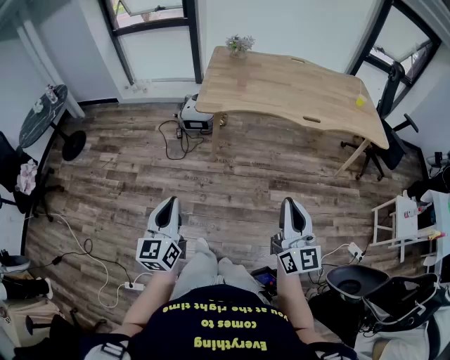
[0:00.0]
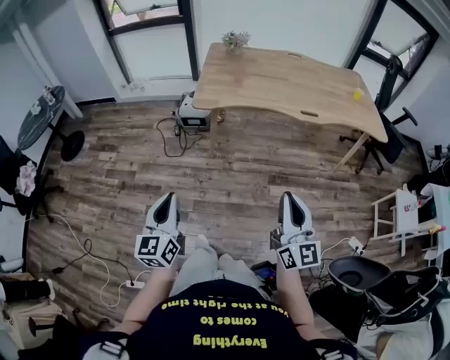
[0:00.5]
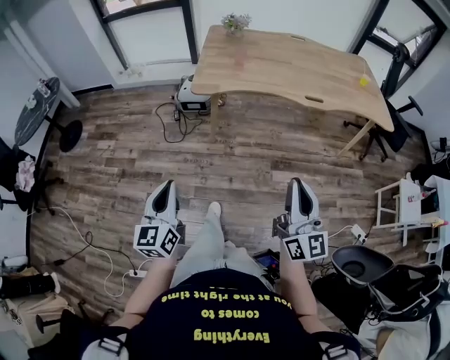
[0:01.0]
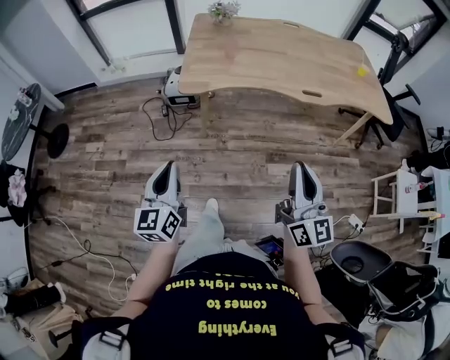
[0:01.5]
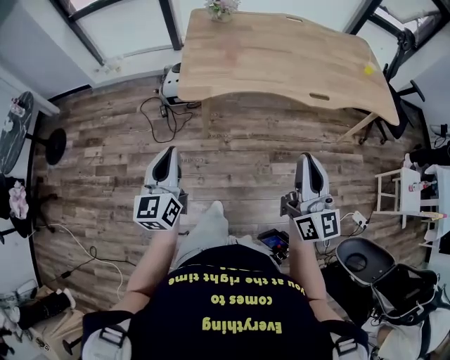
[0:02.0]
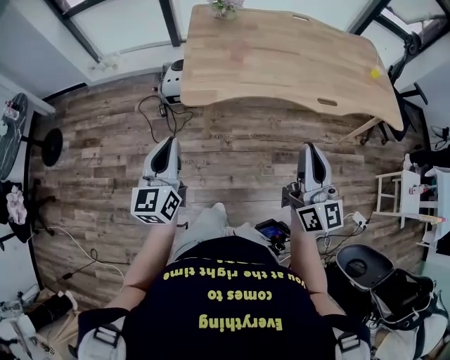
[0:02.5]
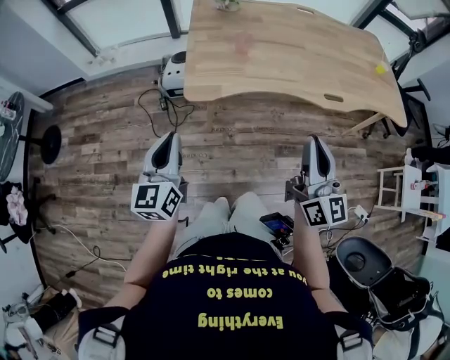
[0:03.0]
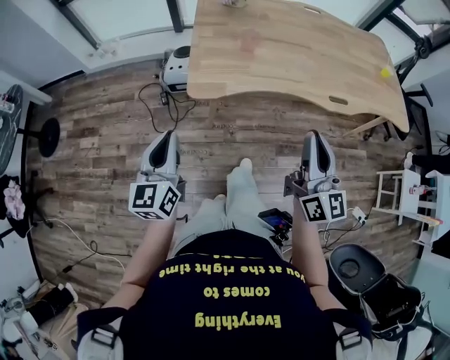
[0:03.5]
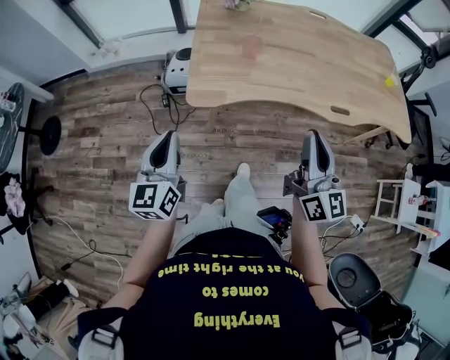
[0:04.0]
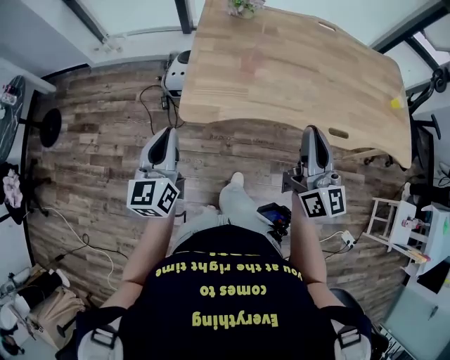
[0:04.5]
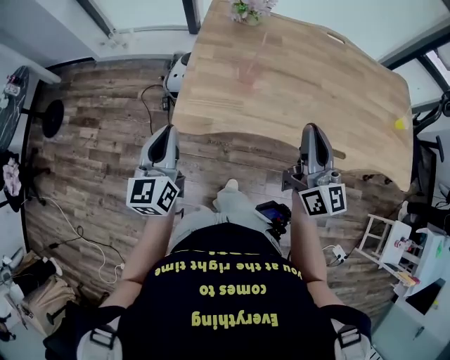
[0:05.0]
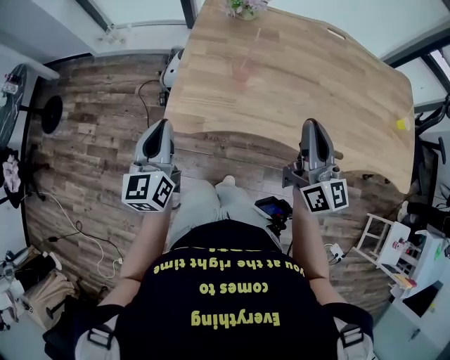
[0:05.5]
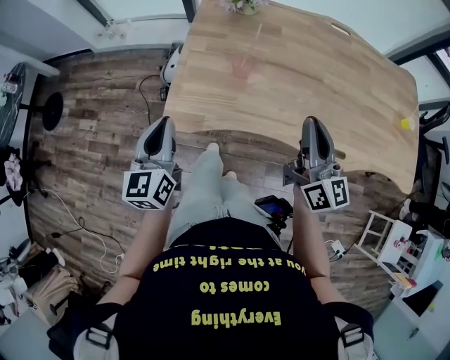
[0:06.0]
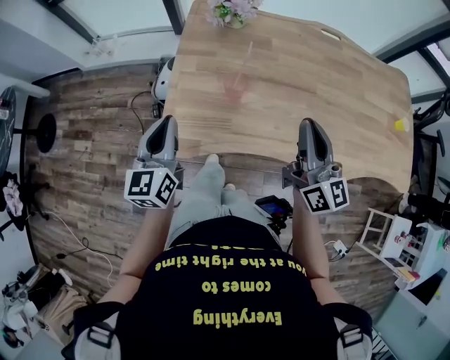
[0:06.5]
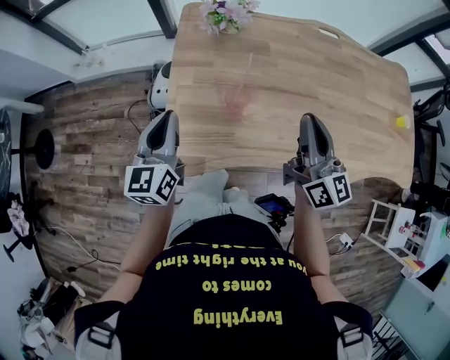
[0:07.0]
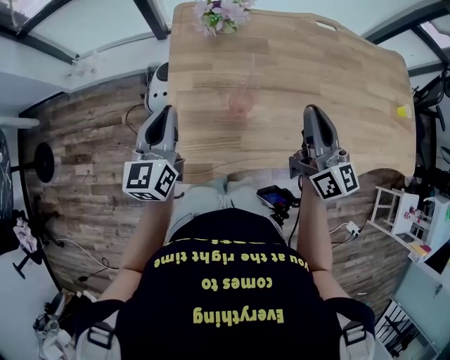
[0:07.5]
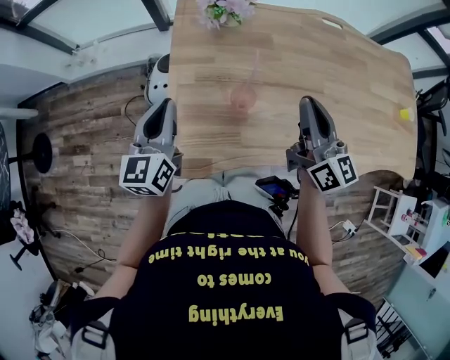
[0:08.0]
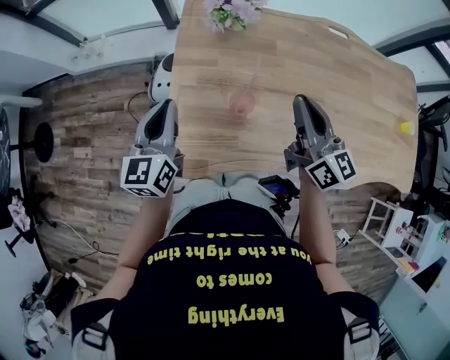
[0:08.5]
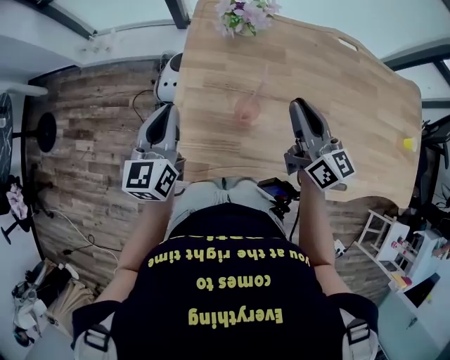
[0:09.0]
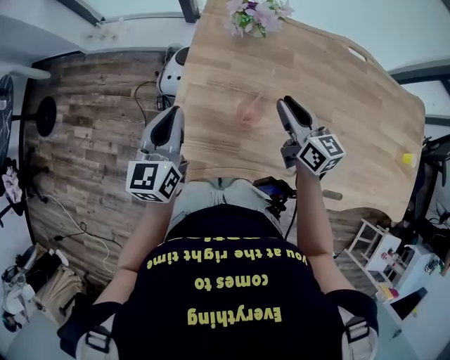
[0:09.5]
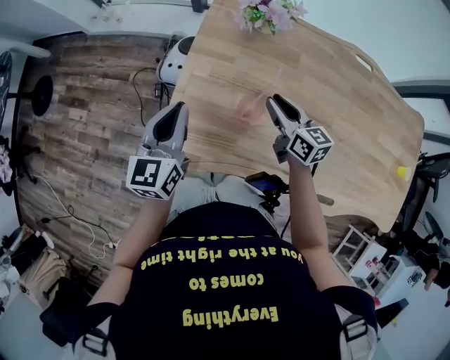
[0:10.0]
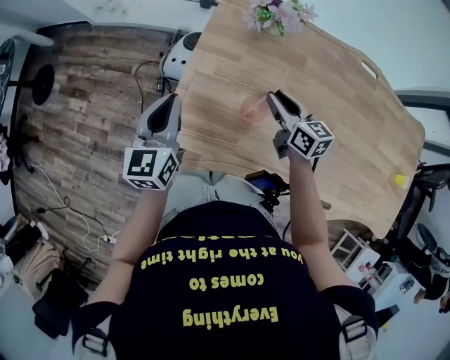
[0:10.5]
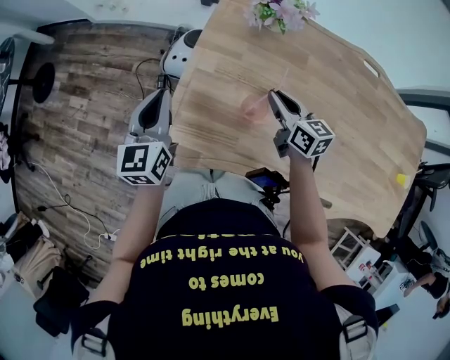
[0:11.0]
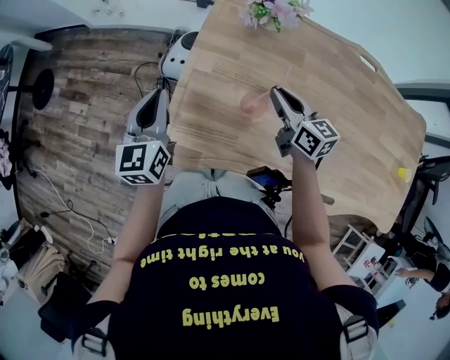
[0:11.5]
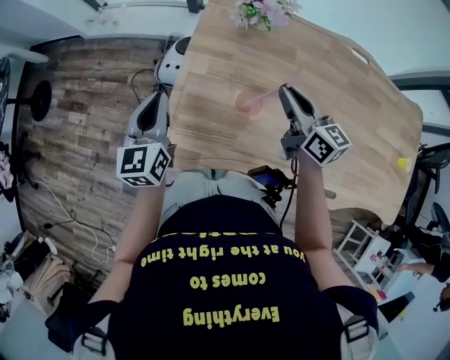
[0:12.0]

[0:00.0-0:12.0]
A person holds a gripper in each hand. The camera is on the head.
0:00.0 to 0:02.0: The two grippers go some 25 cm forward.
0:02.0 to 0:04.0: The grippers both shift forward by roughly 15 cm.
0:04.0 to 0:06.0: The grippers both shift forward and to the right by roughly 20 cm.
0:06.0 to 0:08.0: The two grippers go roughly 20 cm forward.
0:08.0 to 0:10.0: The right gripper shifts about 20 cm downward and forward, turns by some 40 degrees, and opens.
0:10.0 to 0:12.0: The left gripper ends up roughly 5 cm from where it was. Meanwhile the right gripper goes roughly 10 cm upward.

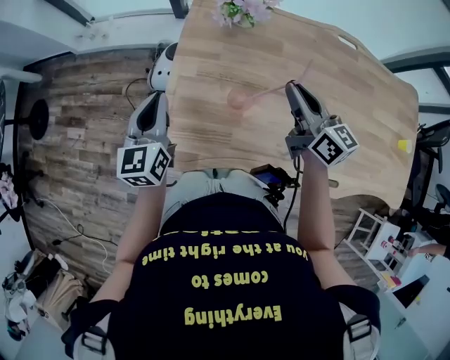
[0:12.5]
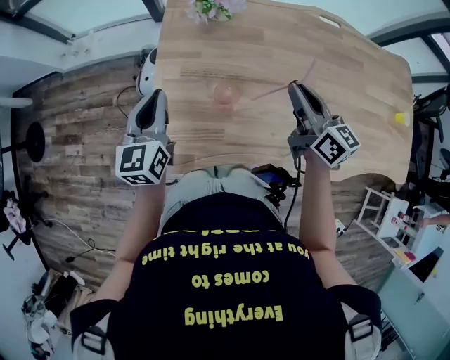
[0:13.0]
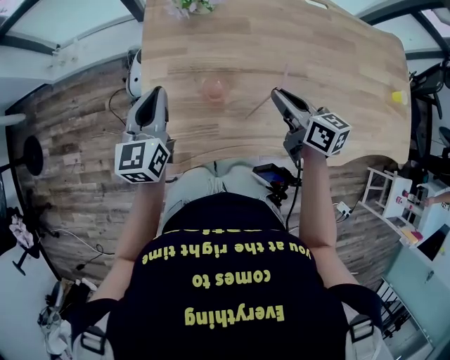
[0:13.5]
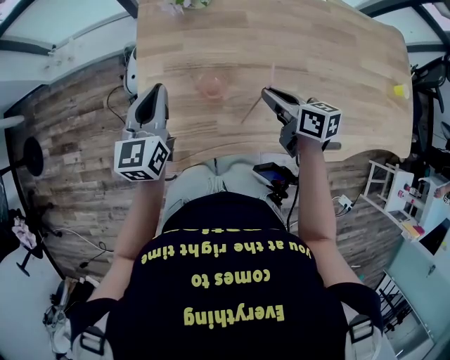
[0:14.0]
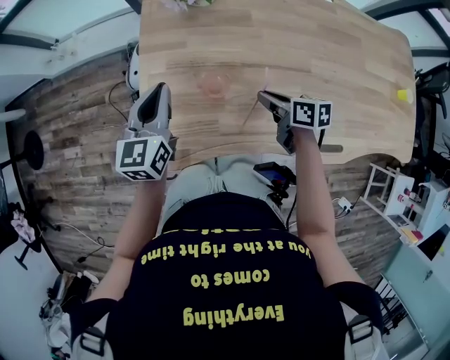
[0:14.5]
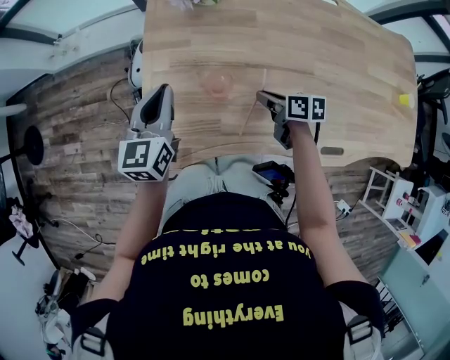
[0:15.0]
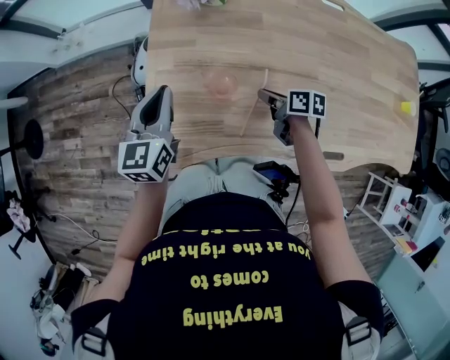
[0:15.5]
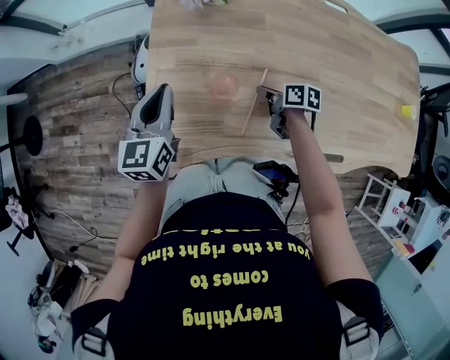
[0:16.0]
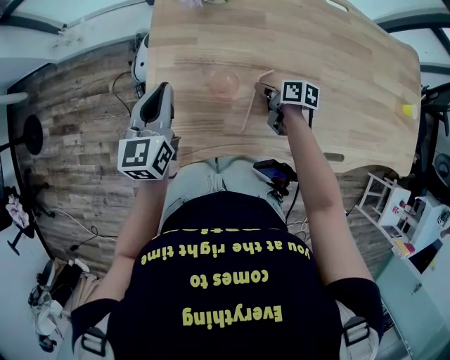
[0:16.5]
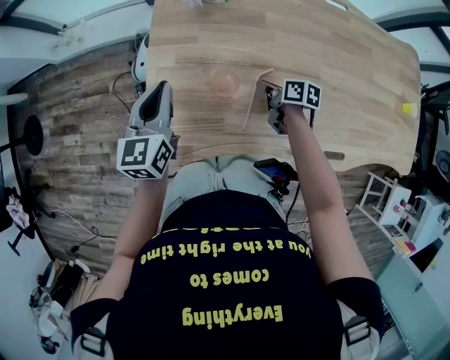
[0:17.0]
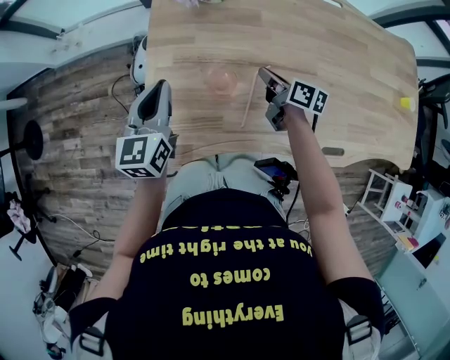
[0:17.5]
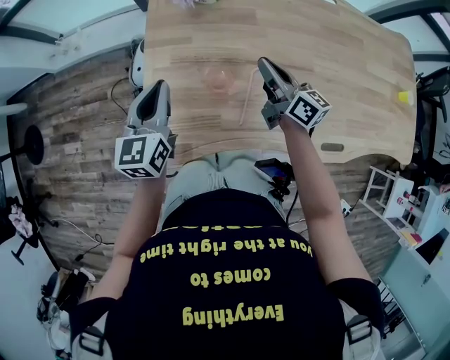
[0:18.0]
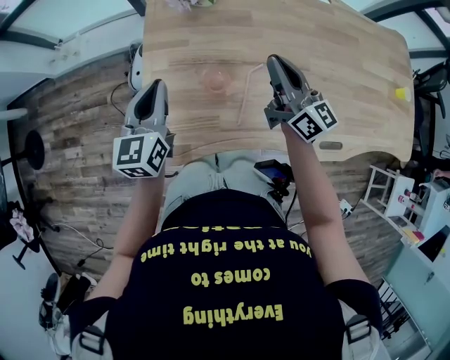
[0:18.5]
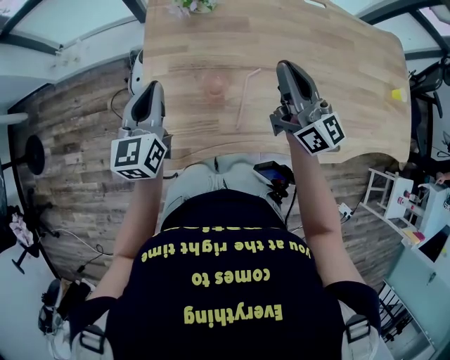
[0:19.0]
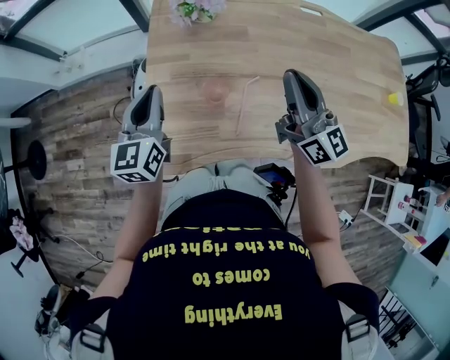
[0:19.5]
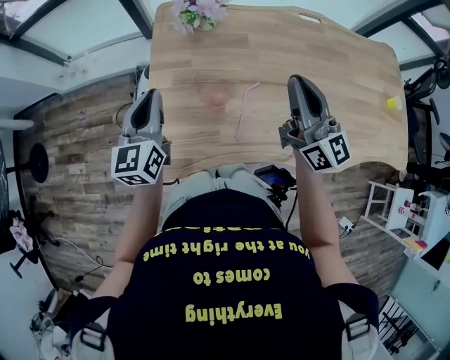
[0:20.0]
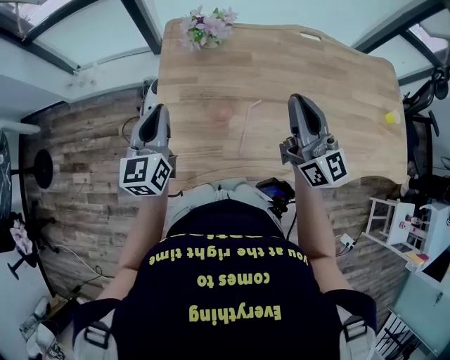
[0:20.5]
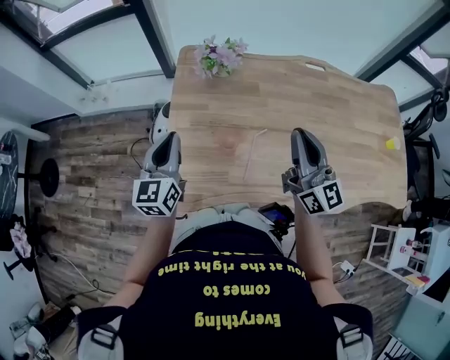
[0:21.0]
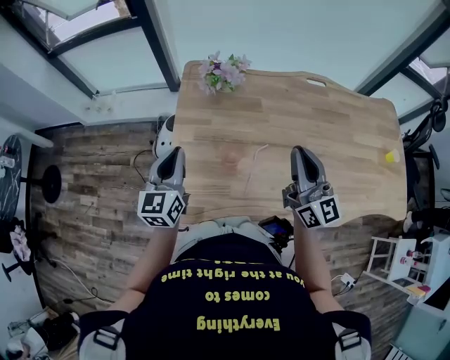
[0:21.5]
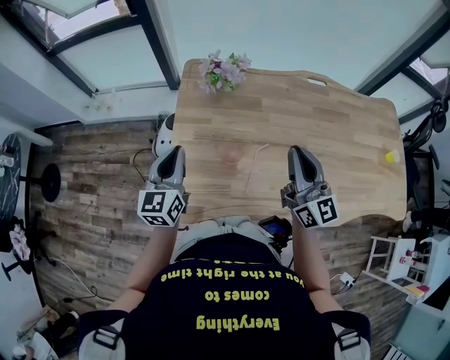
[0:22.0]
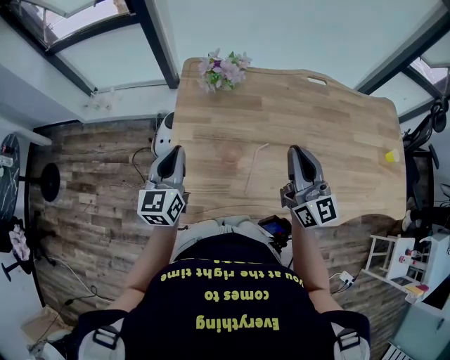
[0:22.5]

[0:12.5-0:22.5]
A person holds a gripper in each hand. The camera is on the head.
0:12.5 to 0:14.5: The left gripper travels to the right by about 10 cm; the right gripper is displaced downward by some 20 cm, and rotates roughly 40 degrees.
0:14.5 to 0:16.5: The right gripper is displaced downward by roughly 10 cm.
0:16.5 to 0:18.5: The right gripper heads upward, covering about 25 cm, and angles its fingers upward, by about 50 degrees.
0:18.5 to 0:20.5: The left gripper heads upward, covering roughly 5 cm, while the right gripper moves upward and backward, about 15 cm.
0:20.5 to 0:22.5: The two grippers keep their place.

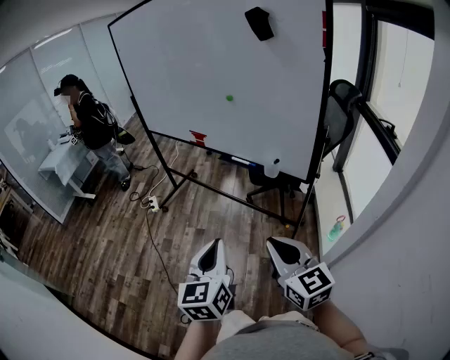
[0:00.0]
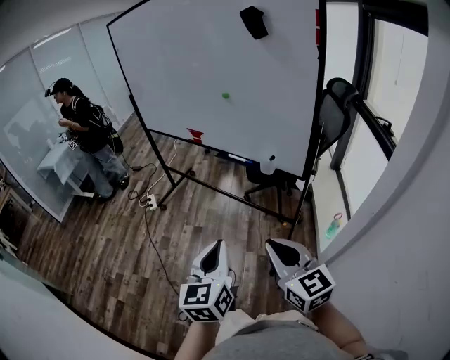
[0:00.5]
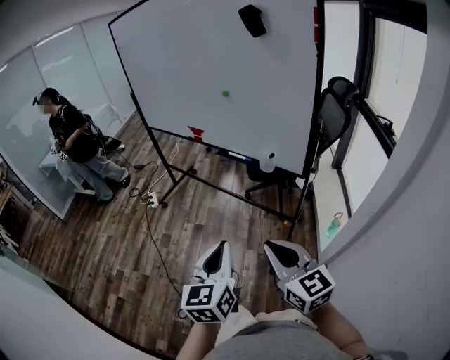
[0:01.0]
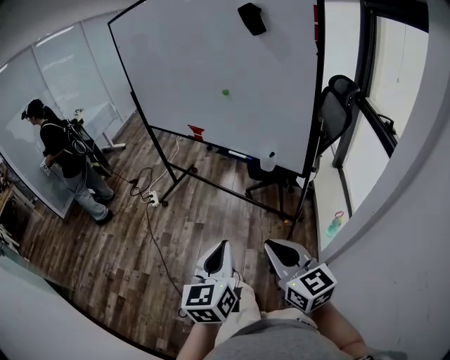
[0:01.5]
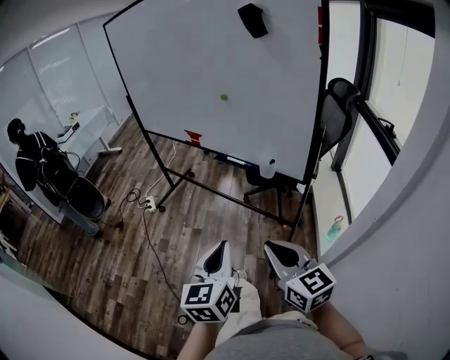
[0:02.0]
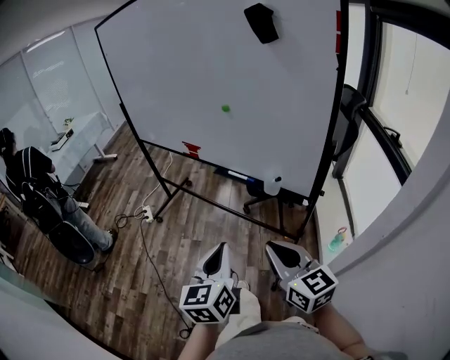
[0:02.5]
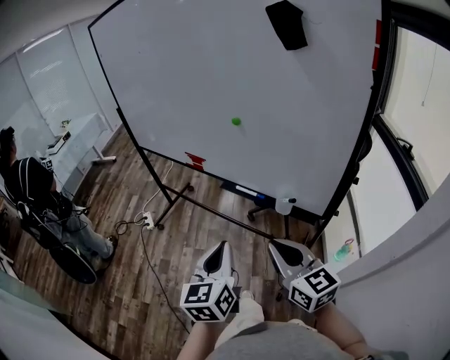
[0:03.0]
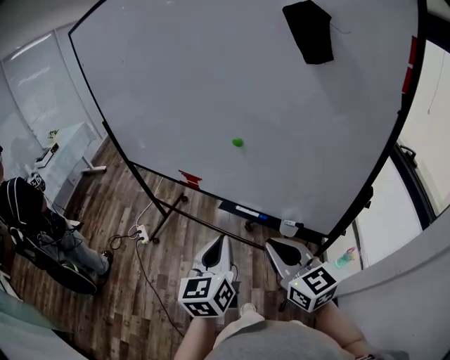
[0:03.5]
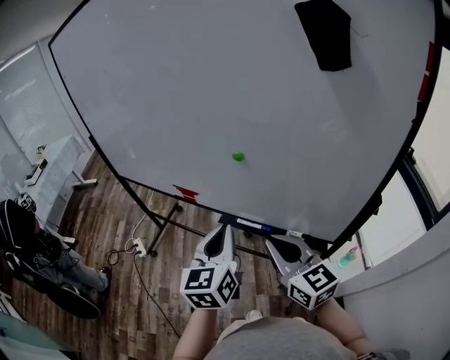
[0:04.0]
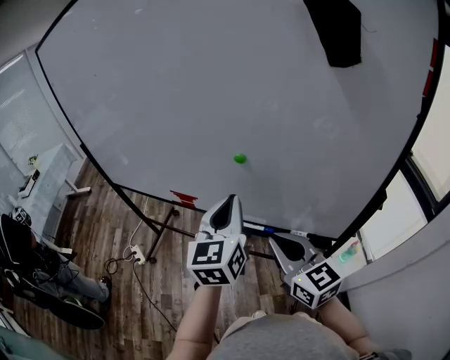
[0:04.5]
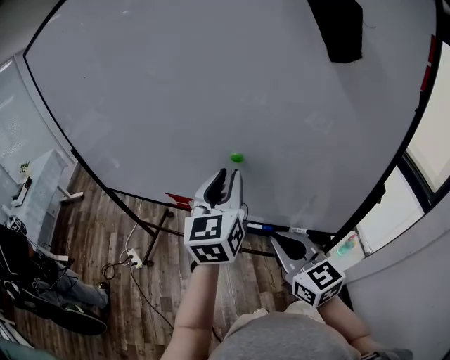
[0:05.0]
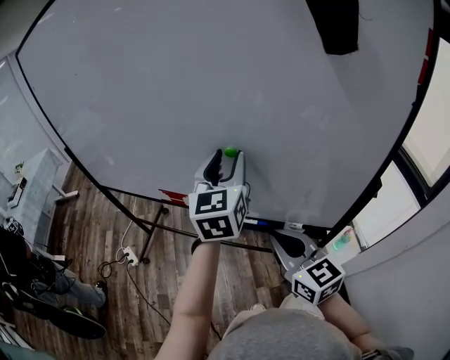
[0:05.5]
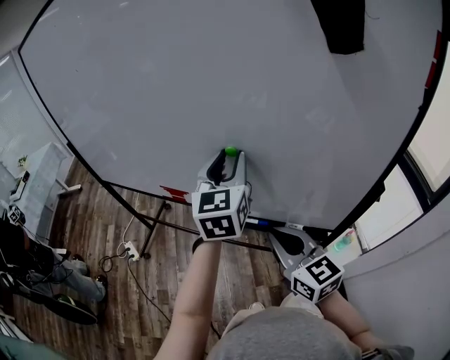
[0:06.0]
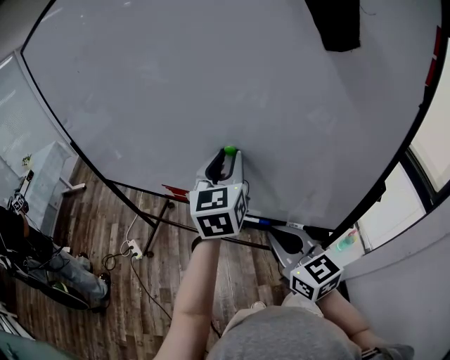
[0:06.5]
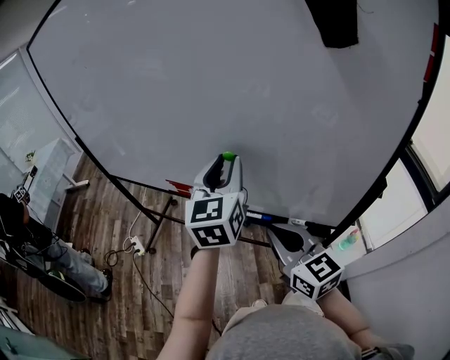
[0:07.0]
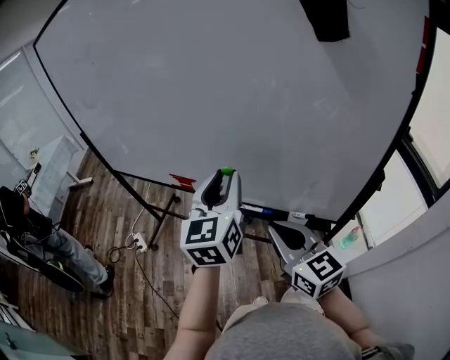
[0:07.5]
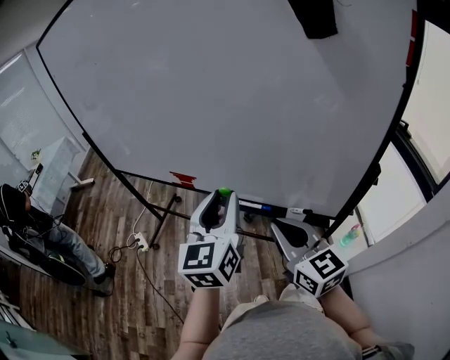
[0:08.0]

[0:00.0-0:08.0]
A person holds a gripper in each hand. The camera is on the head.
0:00.0 to 0:02.0: The grippers make only small movements.
0:02.0 to 0:04.0: The two grippers go roughly 40 cm forward.
0:04.0 to 0:06.0: The left gripper travels forward, upward and to the right by approximately 15 cm, and opens its fingers.
0:06.0 to 0:08.0: The left gripper shifts approximately 15 cm backward and to the left.
